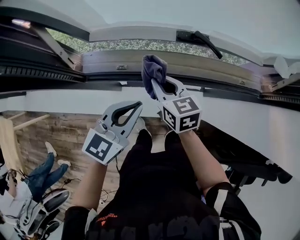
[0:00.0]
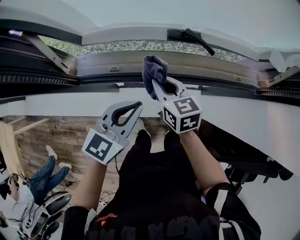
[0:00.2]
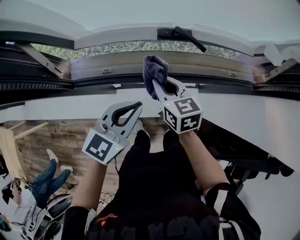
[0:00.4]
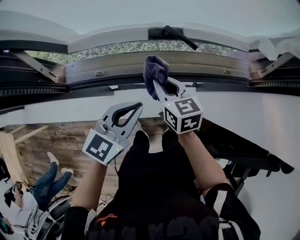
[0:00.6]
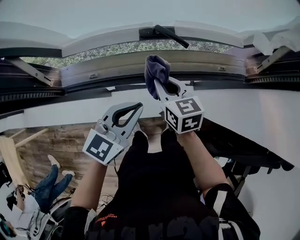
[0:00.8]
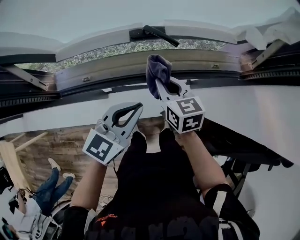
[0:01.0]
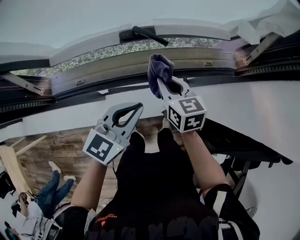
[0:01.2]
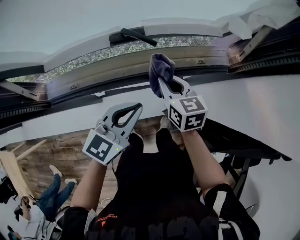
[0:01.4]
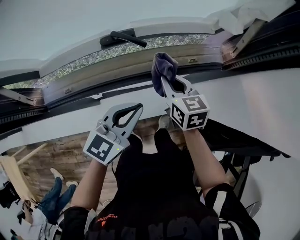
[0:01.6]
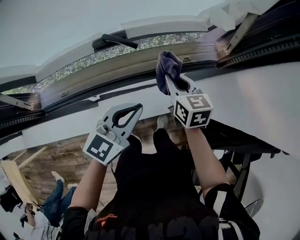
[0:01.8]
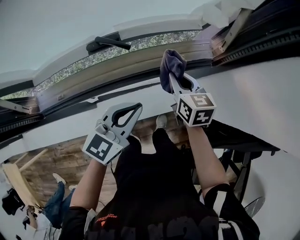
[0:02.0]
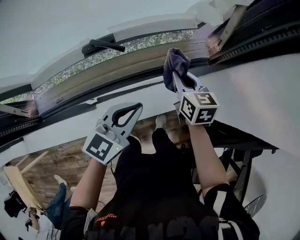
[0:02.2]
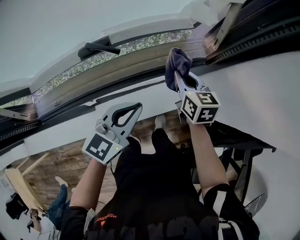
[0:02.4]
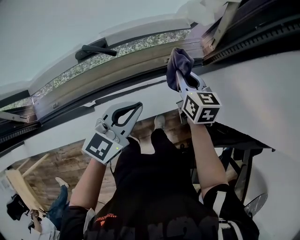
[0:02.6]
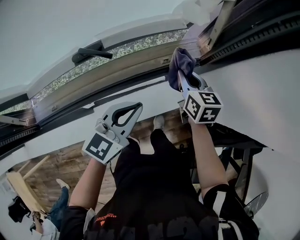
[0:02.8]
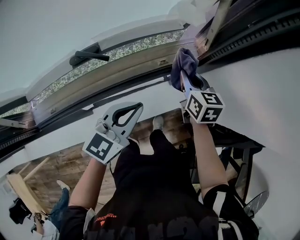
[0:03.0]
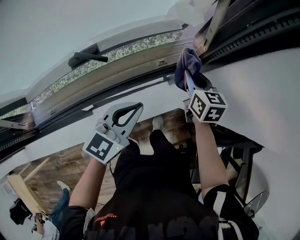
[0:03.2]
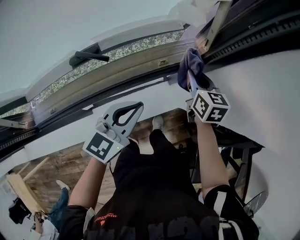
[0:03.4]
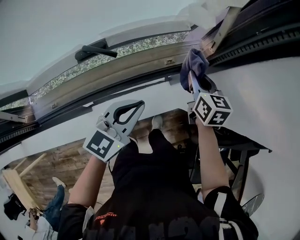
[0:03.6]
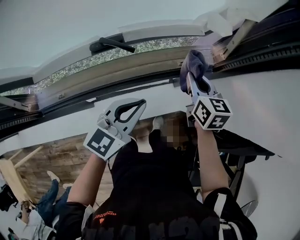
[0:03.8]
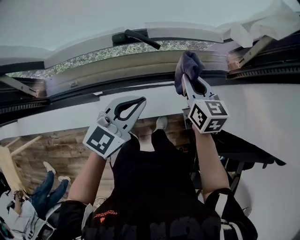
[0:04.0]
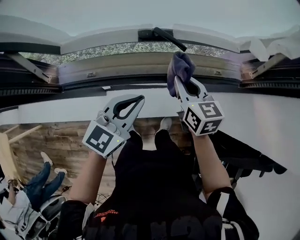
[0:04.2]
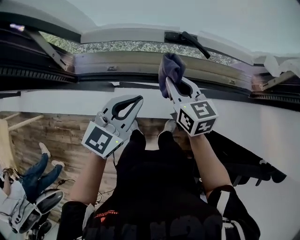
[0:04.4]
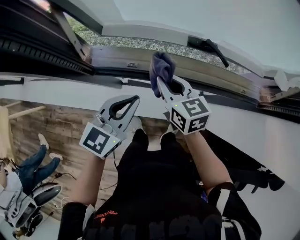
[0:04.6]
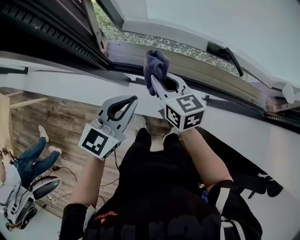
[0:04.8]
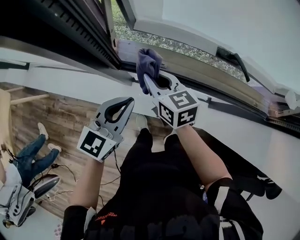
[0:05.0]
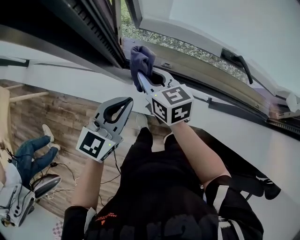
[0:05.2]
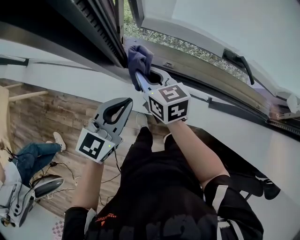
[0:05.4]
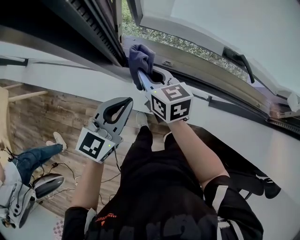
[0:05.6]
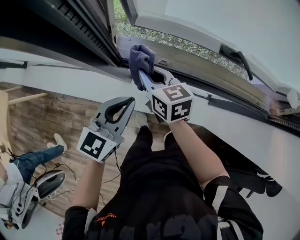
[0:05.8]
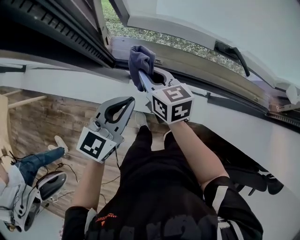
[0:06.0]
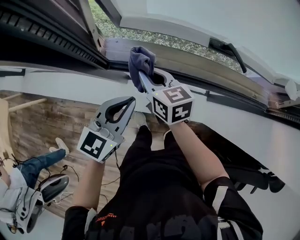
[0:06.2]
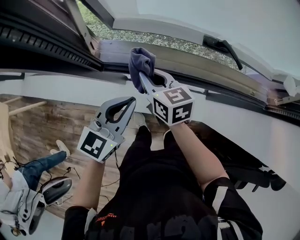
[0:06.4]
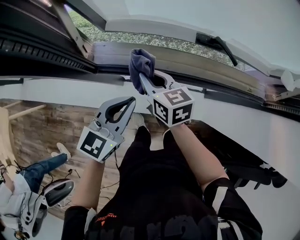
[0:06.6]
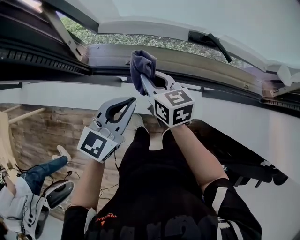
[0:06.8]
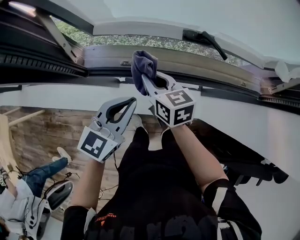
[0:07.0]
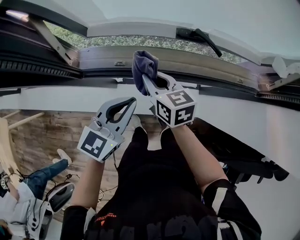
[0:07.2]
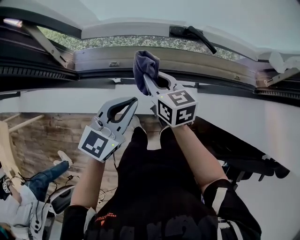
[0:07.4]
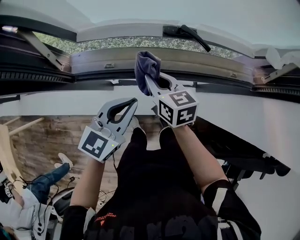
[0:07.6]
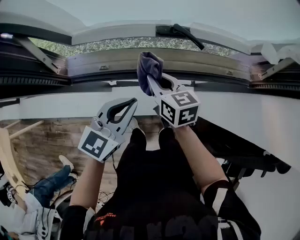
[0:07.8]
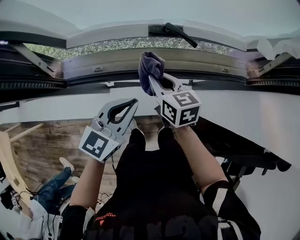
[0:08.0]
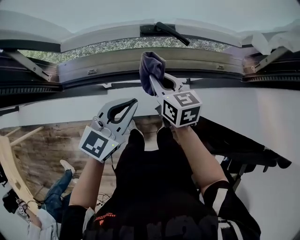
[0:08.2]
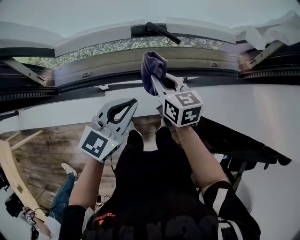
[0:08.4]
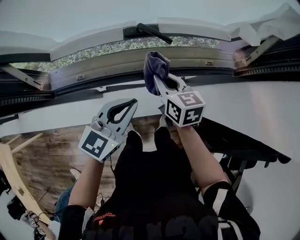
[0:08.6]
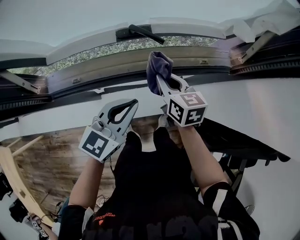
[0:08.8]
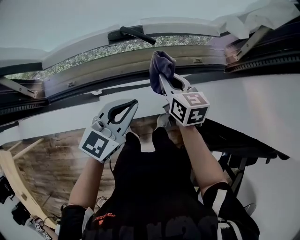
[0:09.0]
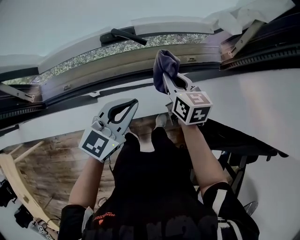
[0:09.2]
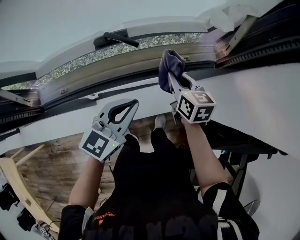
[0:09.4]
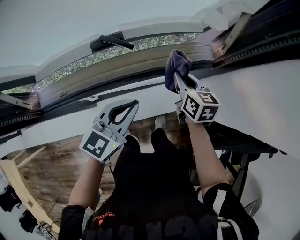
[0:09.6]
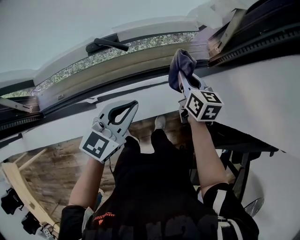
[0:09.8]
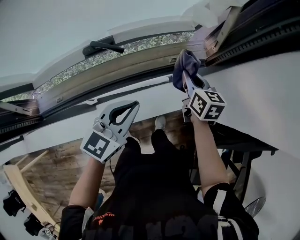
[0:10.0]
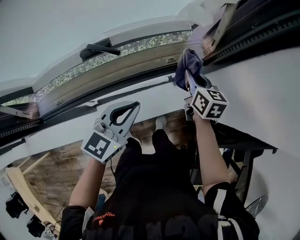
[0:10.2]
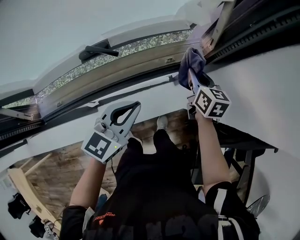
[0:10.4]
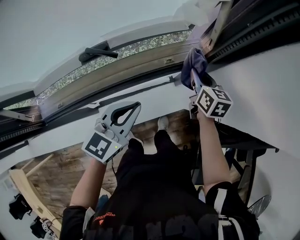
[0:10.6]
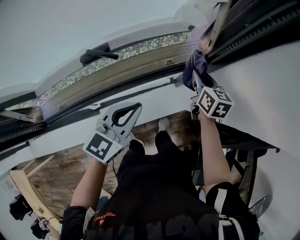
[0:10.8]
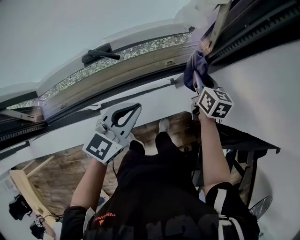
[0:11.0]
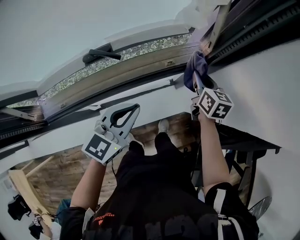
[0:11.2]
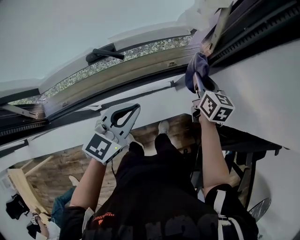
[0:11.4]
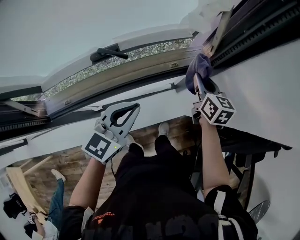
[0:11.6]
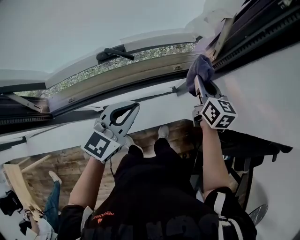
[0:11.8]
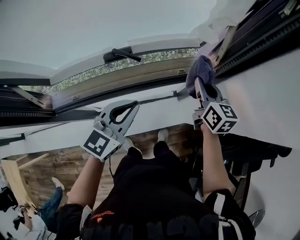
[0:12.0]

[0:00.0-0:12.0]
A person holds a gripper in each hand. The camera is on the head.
0:00.0 to 0:01.6: Both grippers travel together to the right, about 25 cm.
0:01.6 to 0:03.0: The left gripper shifts some 10 cm to the right and forward, while the right gripper travels to the right and forward by approximately 20 cm.
0:03.0 to 0:04.4: The left gripper shifts by some 25 cm, and changes its angle by approximately 20 degrees. Meanwhile the right gripper changes place by about 35 cm, and swivels some 30 degrees.
0:04.4 to 0:06.0: The grippers both shift to the left by about 20 cm.
0:06.0 to 0:07.6: Both grippers move to the right, about 15 cm.
0:07.6 to 0:09.0: Both grippers travel together to the right, approximately 20 cm.
0:09.0 to 0:10.4: The left gripper moves to the right, some 10 cm. Meanwhile the right gripper is displaced to the right by about 20 cm, and swivels about 20 degrees.
0:10.4 to 0:12.0: The left gripper moves upward and to the left, about 10 cm, while the right gripper goes some 10 cm upward.

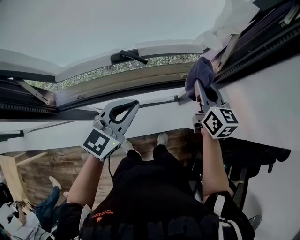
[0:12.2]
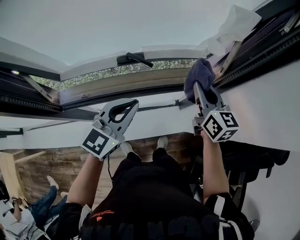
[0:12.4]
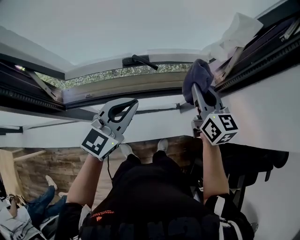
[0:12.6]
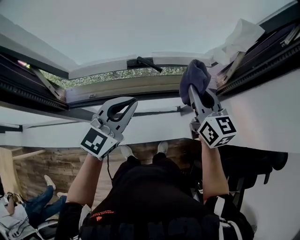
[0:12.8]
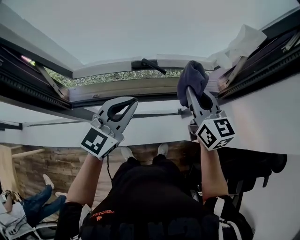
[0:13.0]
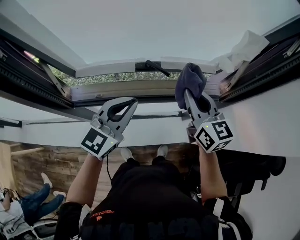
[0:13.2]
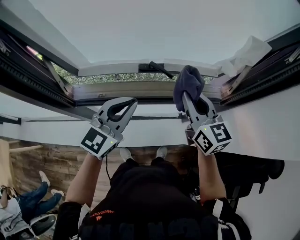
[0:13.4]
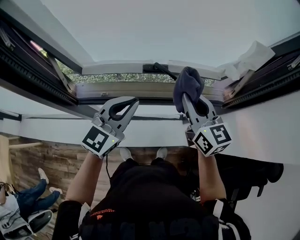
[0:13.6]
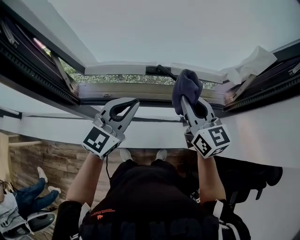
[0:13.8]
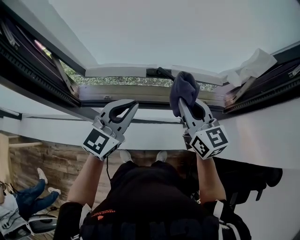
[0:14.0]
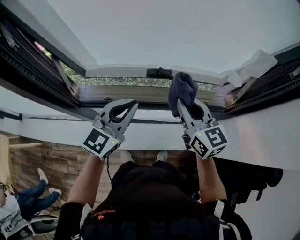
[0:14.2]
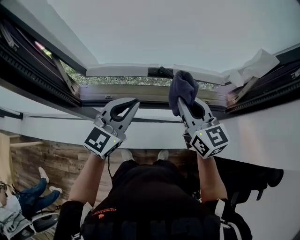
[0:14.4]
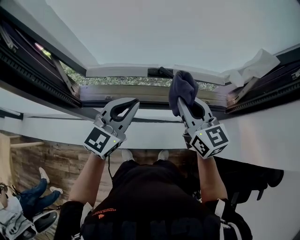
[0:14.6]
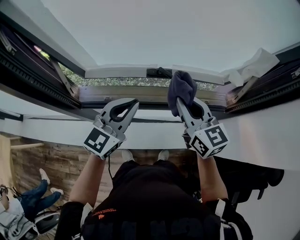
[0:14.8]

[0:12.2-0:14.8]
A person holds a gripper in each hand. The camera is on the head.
0:12.2 to 0:13.4: Both grippers move to the left and upward, about 15 cm. The right gripper changes its angle by some 20 degrees.
0:13.4 to 0:14.8: The right gripper moves approximately 5 cm.

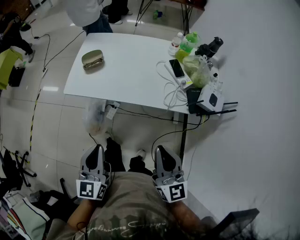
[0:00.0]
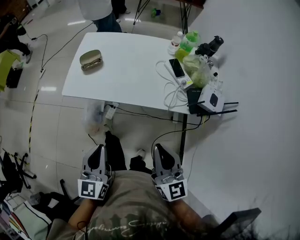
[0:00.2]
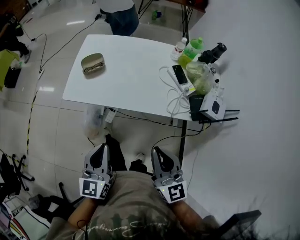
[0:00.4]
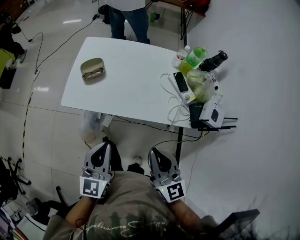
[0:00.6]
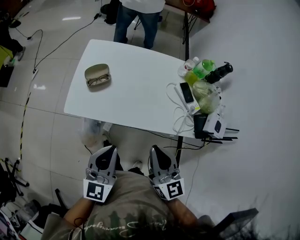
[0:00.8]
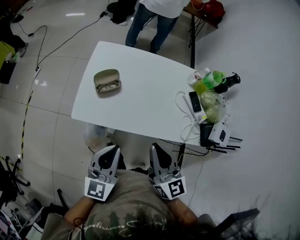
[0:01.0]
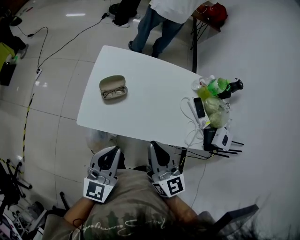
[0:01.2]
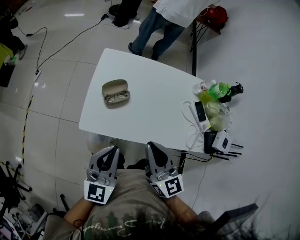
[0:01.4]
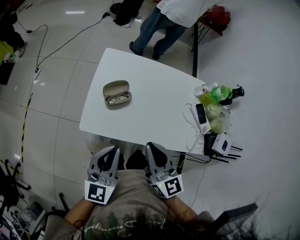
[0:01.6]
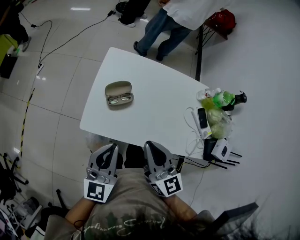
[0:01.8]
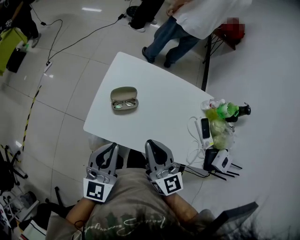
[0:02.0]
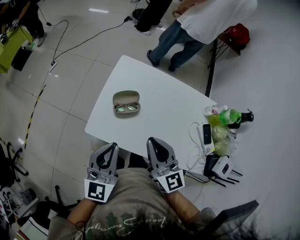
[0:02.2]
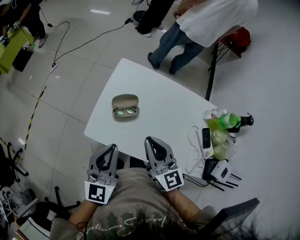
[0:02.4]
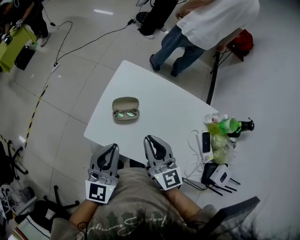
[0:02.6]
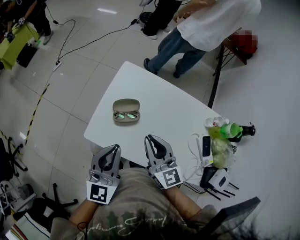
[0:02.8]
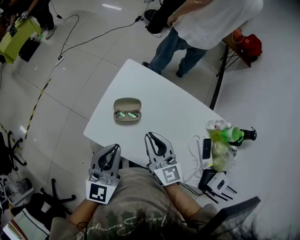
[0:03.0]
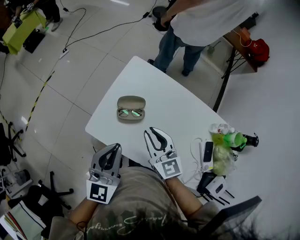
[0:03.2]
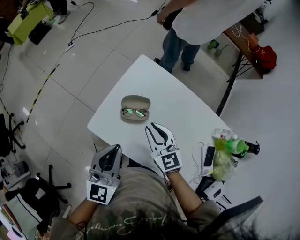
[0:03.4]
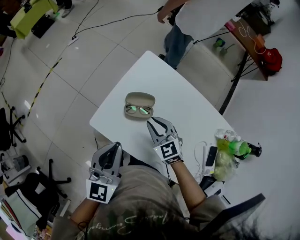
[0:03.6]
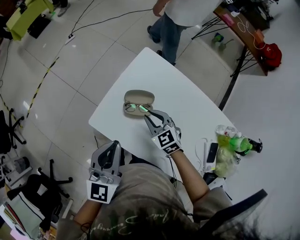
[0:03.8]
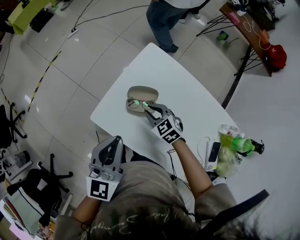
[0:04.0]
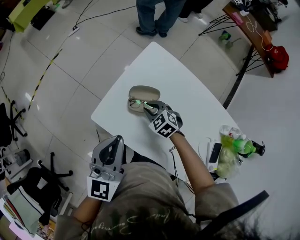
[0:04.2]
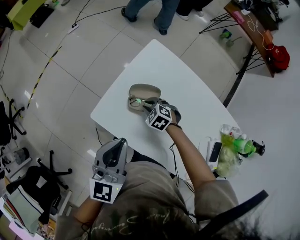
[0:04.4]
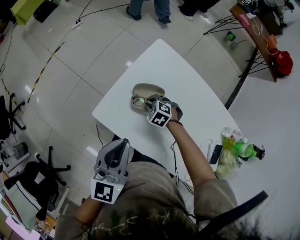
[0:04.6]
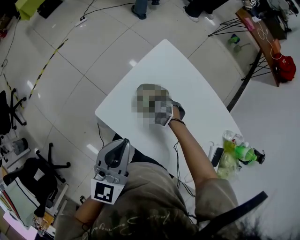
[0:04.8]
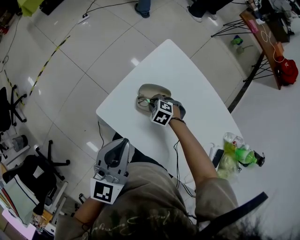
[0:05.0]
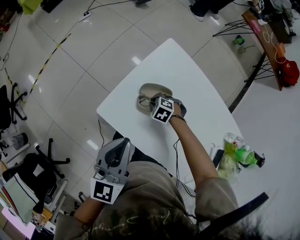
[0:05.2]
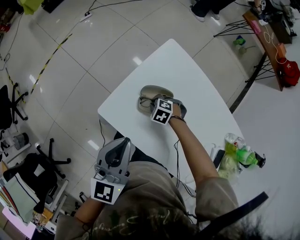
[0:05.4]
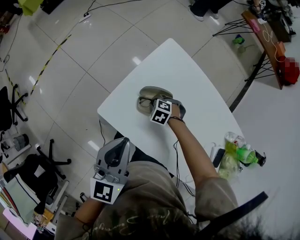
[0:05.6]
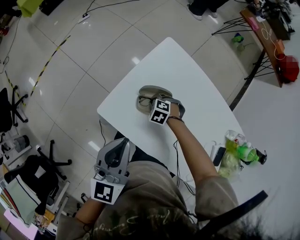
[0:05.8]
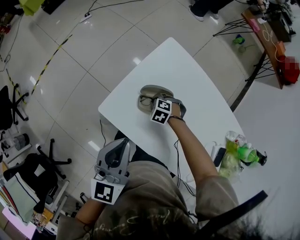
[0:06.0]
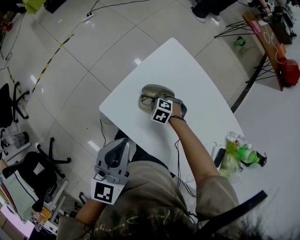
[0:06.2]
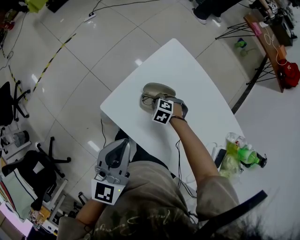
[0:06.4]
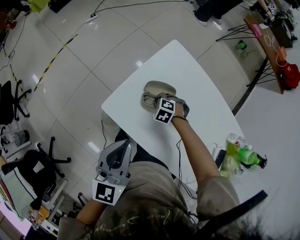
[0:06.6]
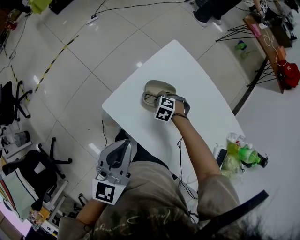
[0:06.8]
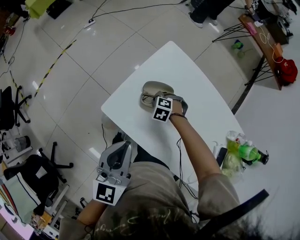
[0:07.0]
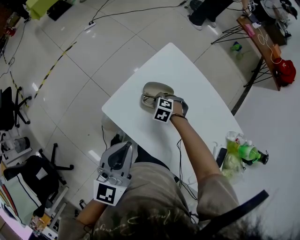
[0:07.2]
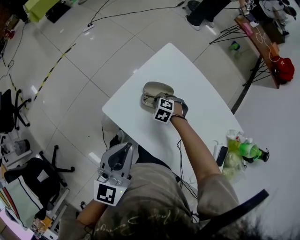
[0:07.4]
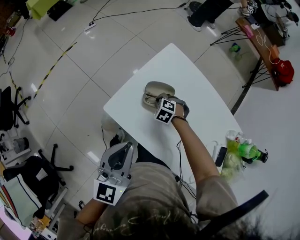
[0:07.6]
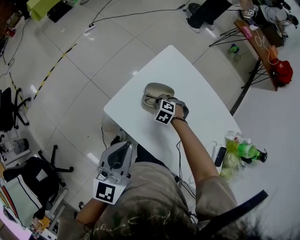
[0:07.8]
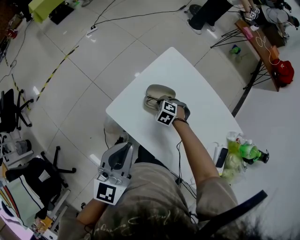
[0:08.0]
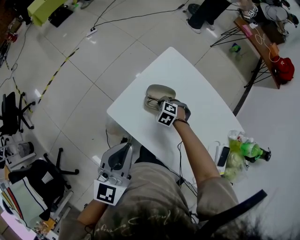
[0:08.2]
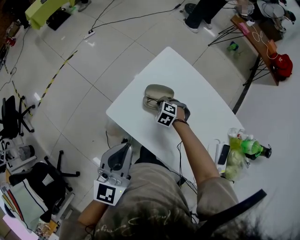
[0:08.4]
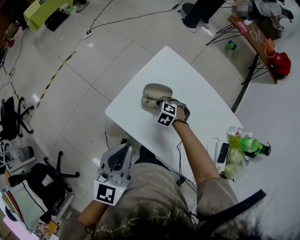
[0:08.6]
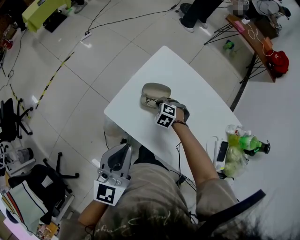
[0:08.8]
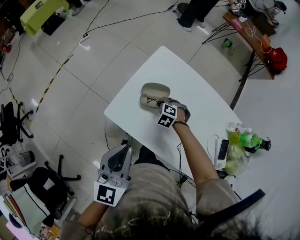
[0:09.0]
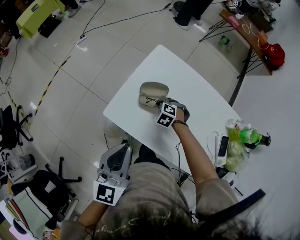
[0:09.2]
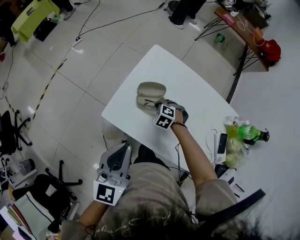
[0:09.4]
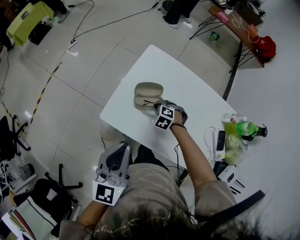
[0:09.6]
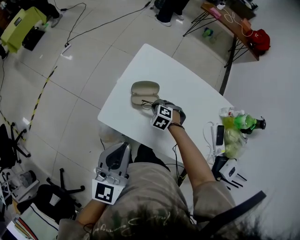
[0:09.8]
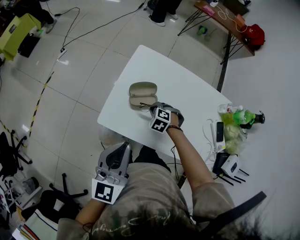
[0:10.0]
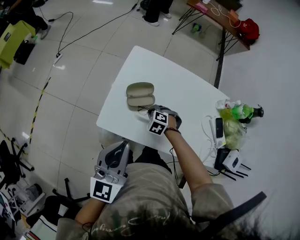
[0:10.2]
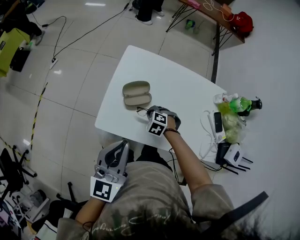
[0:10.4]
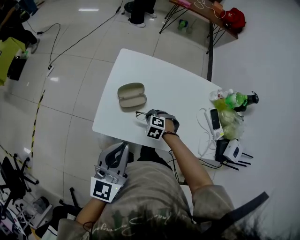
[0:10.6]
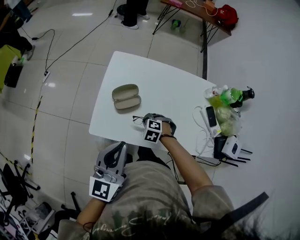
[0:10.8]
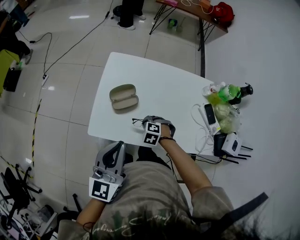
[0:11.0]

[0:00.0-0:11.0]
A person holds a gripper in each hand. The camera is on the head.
0:00.0 to 0:01.6: The two grippers go about 40 cm forward and to the left.
0:01.6 to 0:03.2: The left gripper travels forward by roughly 10 cm, and changes its angle by approximately 20 degrees. The right gripper shifts roughly 20 cm forward and downward, and swivels some 30 degrees.
0:03.2 to 0:04.8: The right gripper shifts some 30 cm downward, and angles its fingers downward, by approximately 50 degrees; the left gripper shifts by some 5 cm.
0:04.8 to 0:06.2: The grippers move only a little.
0:06.2 to 0:07.8: The left gripper changes place by some 5 cm.
0:07.8 to 0:09.4: The right gripper shifts by approximately 5 cm.
0:09.4 to 0:11.0: The left gripper swivels roughly 20 degrees. The right gripper ends up approximately 10 cm from where it was.
